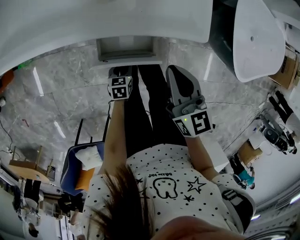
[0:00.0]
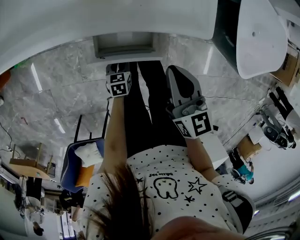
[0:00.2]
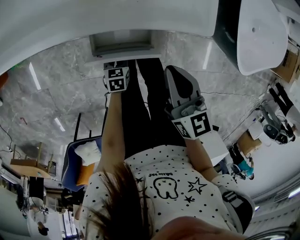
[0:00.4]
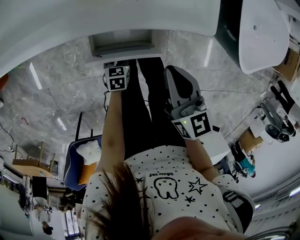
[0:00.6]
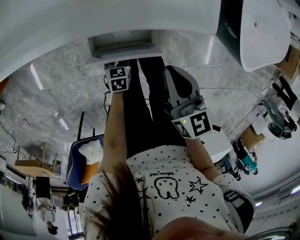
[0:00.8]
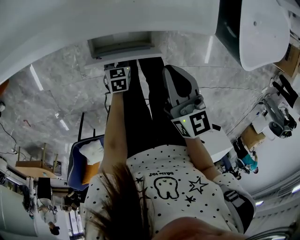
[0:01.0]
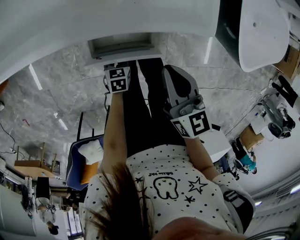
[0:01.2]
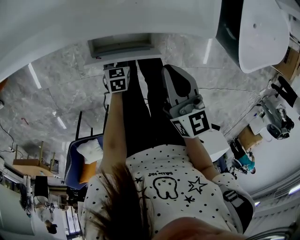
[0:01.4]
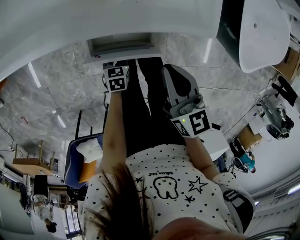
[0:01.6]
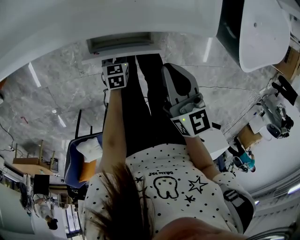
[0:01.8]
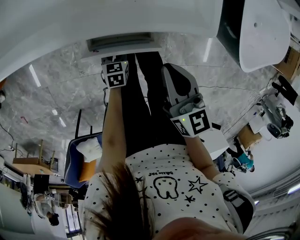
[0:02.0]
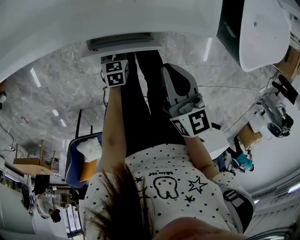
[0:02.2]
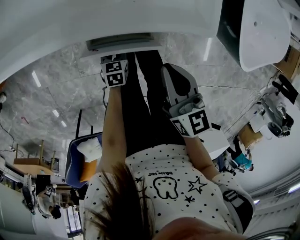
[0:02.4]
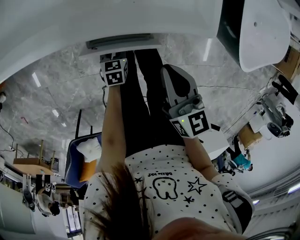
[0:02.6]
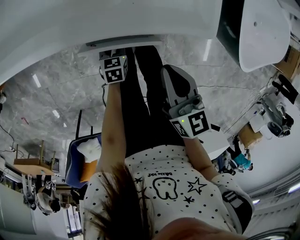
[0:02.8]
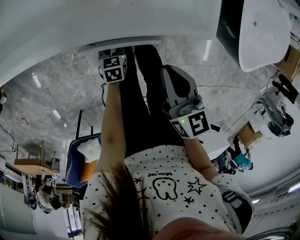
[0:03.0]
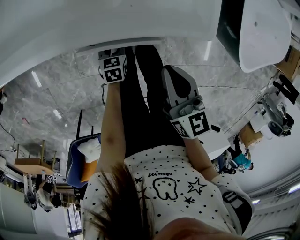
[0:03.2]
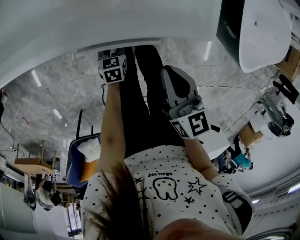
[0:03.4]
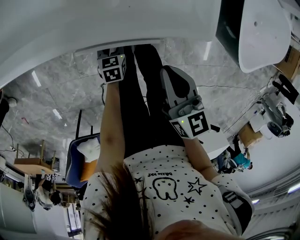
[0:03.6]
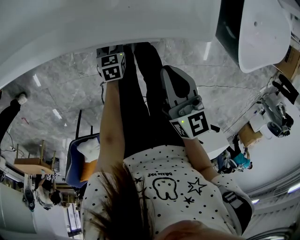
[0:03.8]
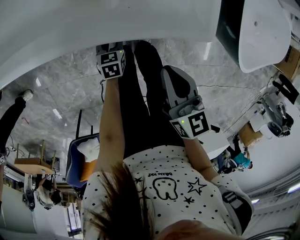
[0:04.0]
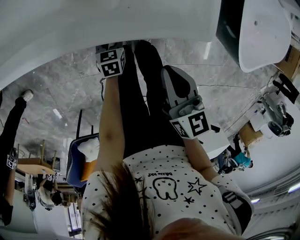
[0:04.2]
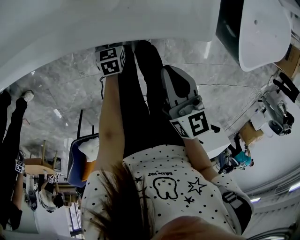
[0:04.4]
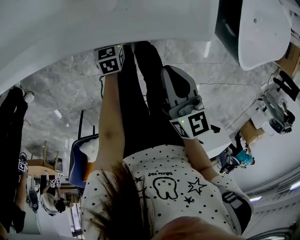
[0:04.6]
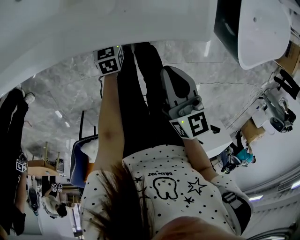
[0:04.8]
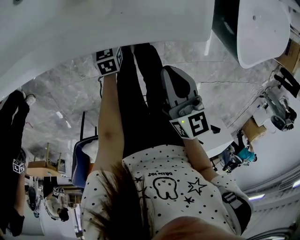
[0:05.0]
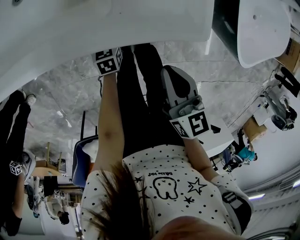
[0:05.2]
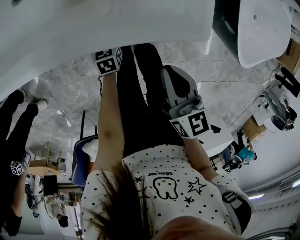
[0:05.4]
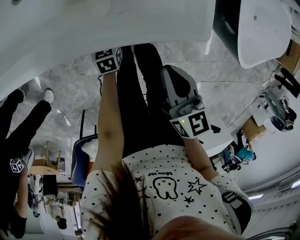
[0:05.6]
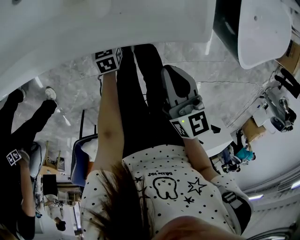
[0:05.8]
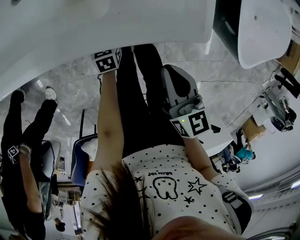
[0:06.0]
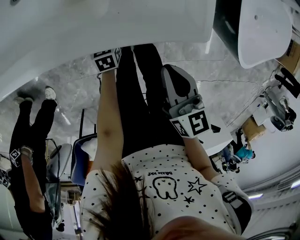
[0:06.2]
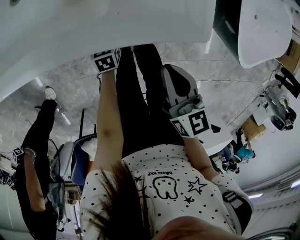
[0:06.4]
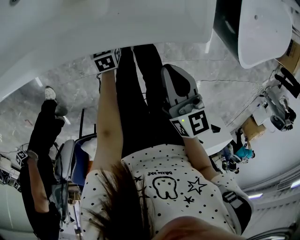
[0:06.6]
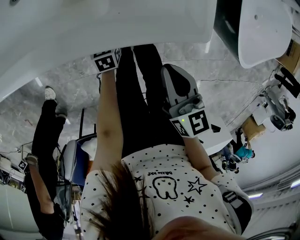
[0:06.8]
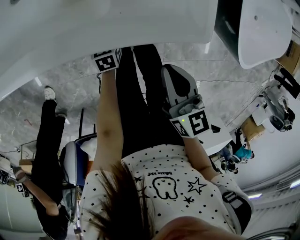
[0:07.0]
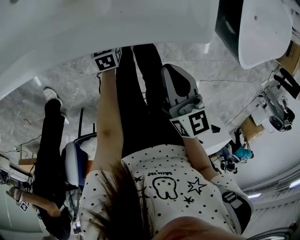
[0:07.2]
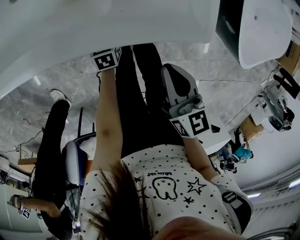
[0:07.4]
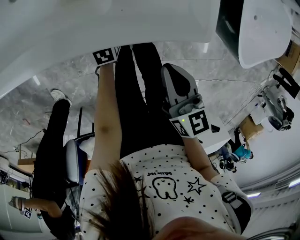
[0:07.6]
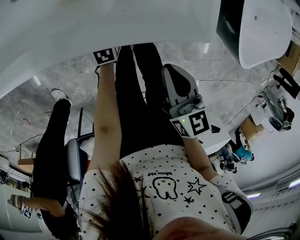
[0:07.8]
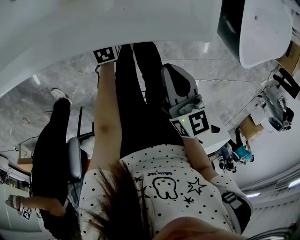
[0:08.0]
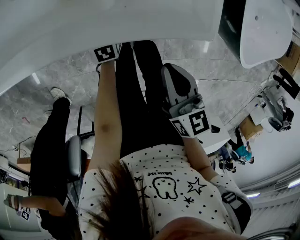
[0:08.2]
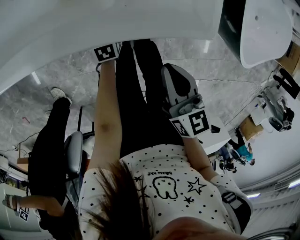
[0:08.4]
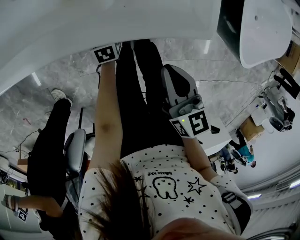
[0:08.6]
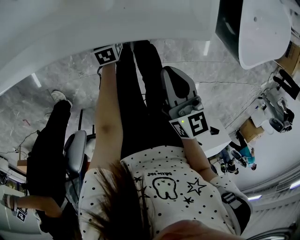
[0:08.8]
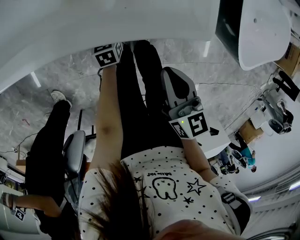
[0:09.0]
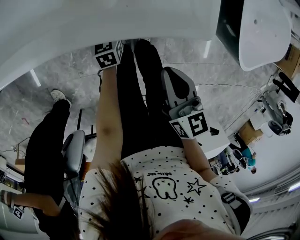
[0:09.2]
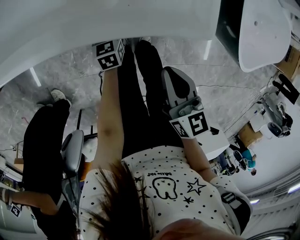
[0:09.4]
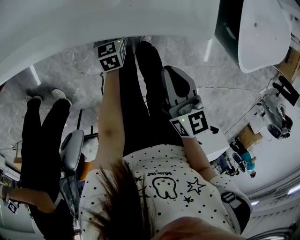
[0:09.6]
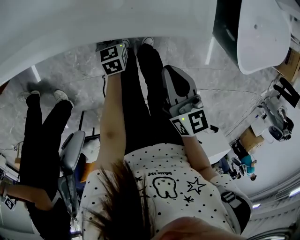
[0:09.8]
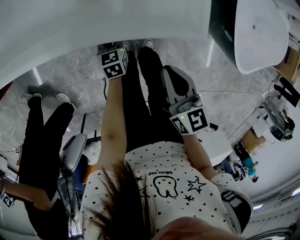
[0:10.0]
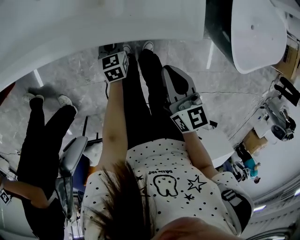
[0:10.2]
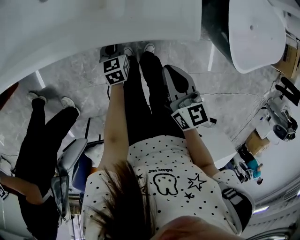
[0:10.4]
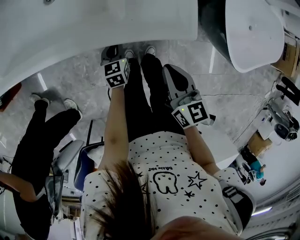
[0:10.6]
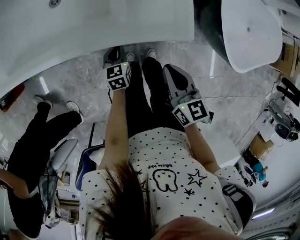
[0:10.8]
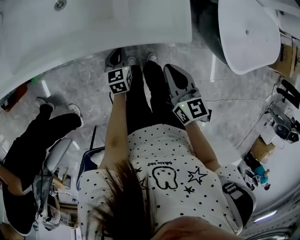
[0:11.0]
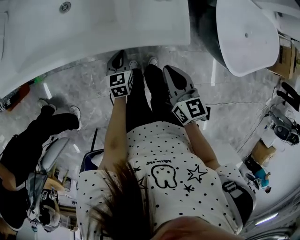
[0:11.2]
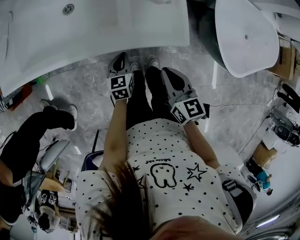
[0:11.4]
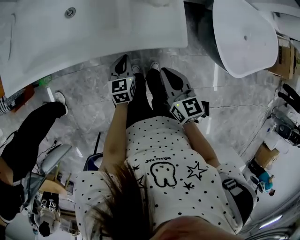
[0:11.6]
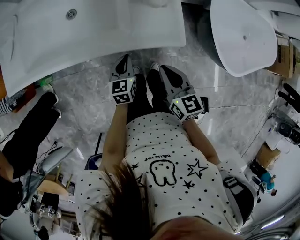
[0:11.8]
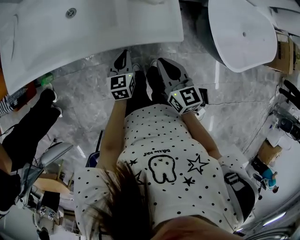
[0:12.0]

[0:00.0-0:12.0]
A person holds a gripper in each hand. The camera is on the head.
0.0 to 1.6 s: The grippers stay close to where they were, moving slightly.
1.6 to 3.0 s: The left gripper goes approximately 5 cm forward.
3.0 to 4.4 s: There are only small adjustments of the grippers.
4.4 to 7.6 s: There are only small adjustments of the grippers.
7.6 to 9.0 s: The grippers move only a little.
9.0 to 10.4 s: The left gripper moves upward, roughly 10 cm, and closes.
10.4 to 12.0 s: The left gripper travels upward by approximately 20 cm. Meanwhile the right gripper goes some 10 cm upward.

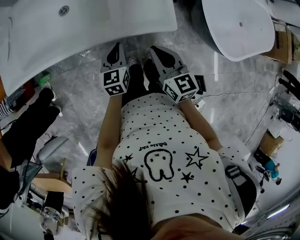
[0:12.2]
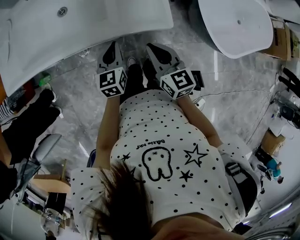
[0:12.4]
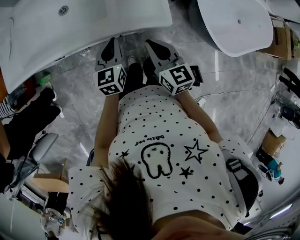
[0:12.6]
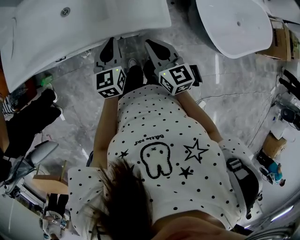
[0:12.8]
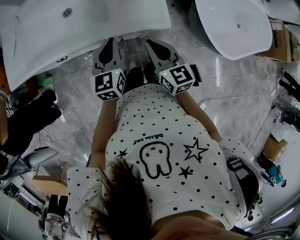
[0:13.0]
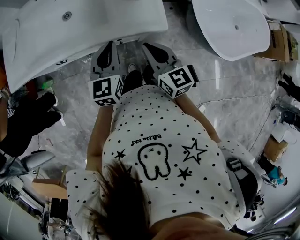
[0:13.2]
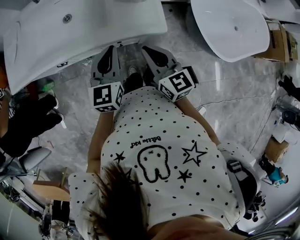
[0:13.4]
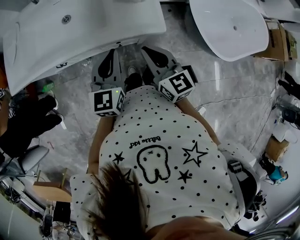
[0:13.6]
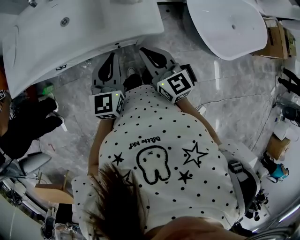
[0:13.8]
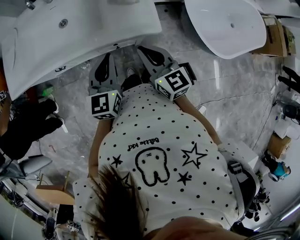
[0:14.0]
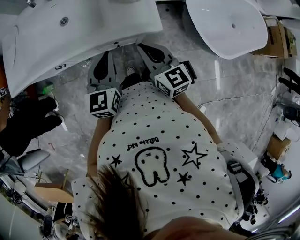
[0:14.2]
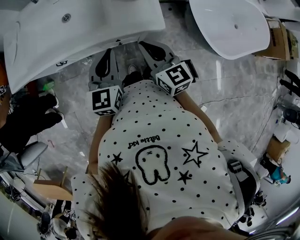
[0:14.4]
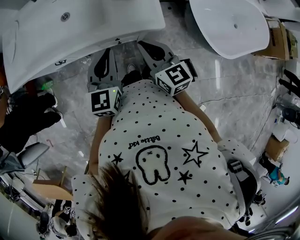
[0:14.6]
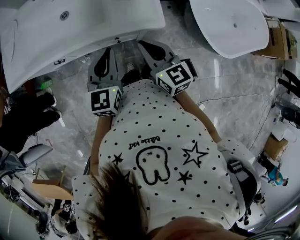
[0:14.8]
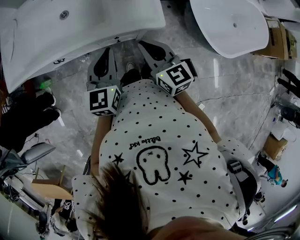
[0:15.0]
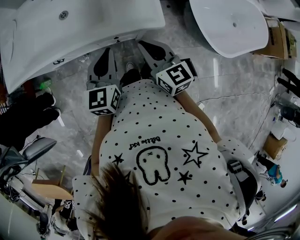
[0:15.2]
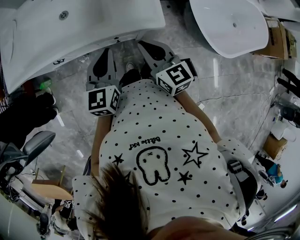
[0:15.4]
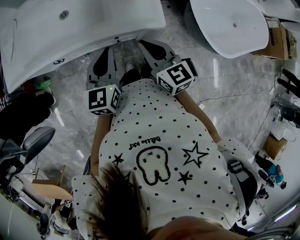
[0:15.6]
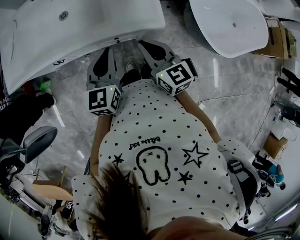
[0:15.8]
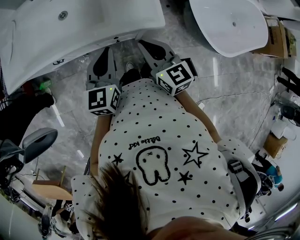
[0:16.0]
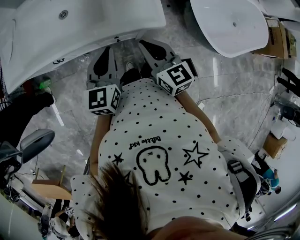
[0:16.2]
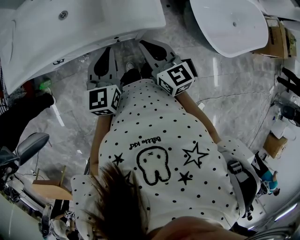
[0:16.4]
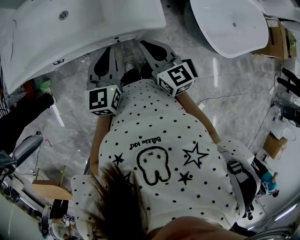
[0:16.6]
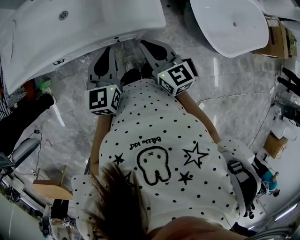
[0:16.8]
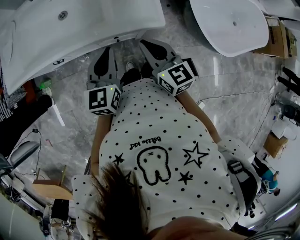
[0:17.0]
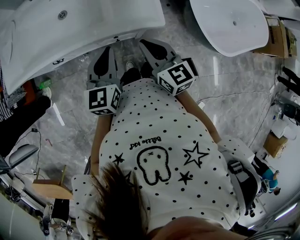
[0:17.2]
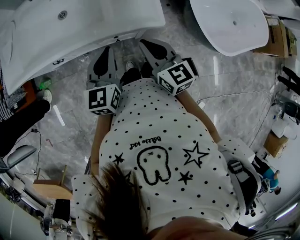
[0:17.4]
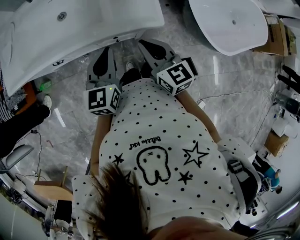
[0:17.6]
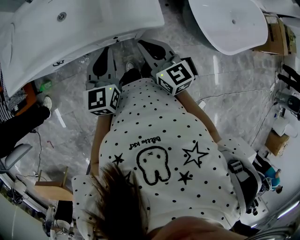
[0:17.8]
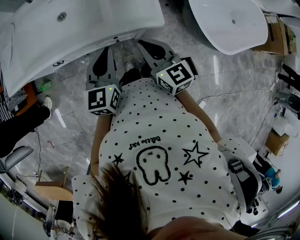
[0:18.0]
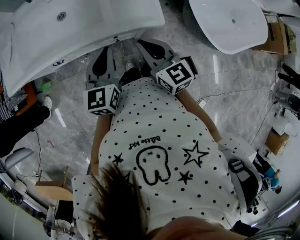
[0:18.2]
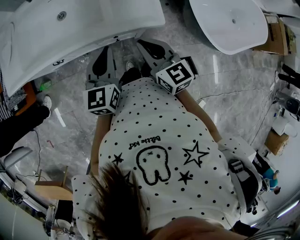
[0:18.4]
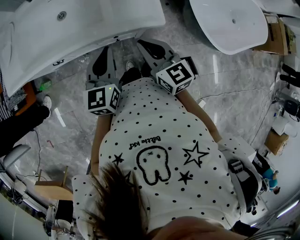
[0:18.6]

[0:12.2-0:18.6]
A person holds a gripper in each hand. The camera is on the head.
12.2 to 13.8 s: The right gripper heads upward, covering roughly 5 cm; the left gripper is displaced upward by roughly 15 cm.
13.8 to 15.4 s: The grippers make only small movements.
15.4 to 18.6 s: The two grippers keep their place.

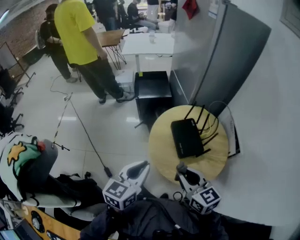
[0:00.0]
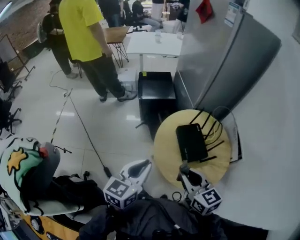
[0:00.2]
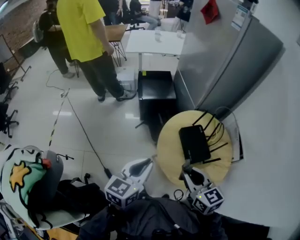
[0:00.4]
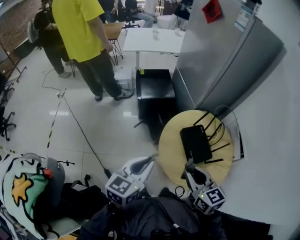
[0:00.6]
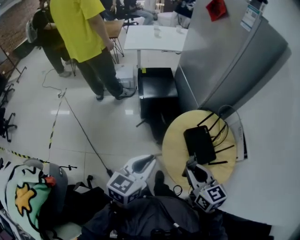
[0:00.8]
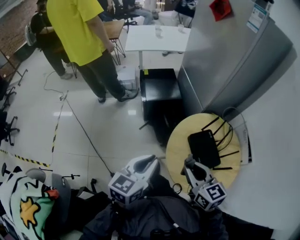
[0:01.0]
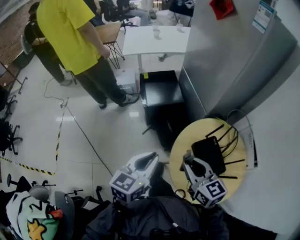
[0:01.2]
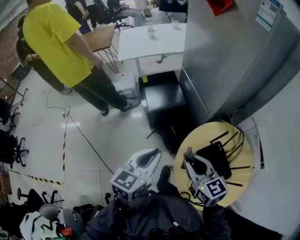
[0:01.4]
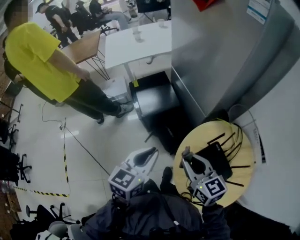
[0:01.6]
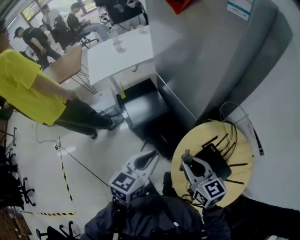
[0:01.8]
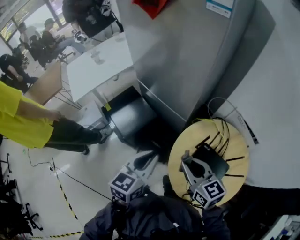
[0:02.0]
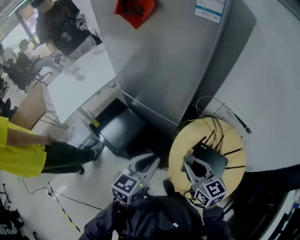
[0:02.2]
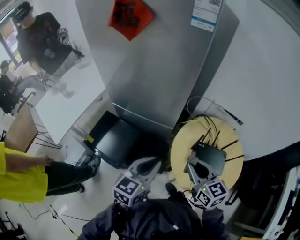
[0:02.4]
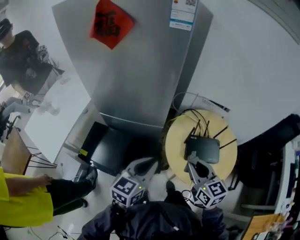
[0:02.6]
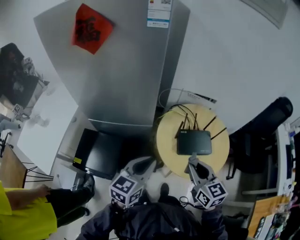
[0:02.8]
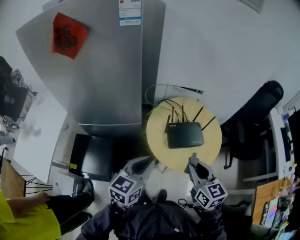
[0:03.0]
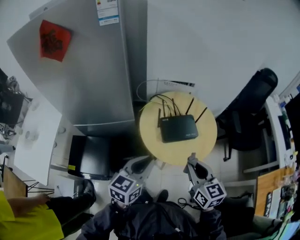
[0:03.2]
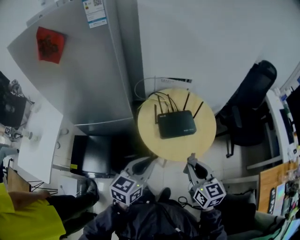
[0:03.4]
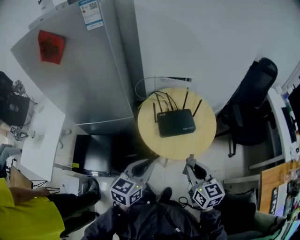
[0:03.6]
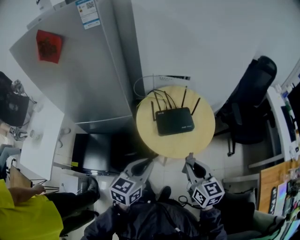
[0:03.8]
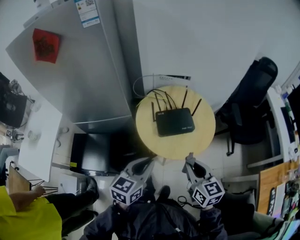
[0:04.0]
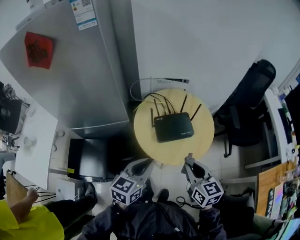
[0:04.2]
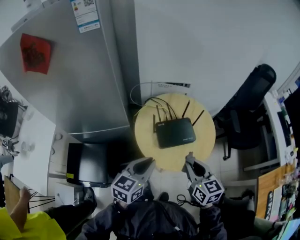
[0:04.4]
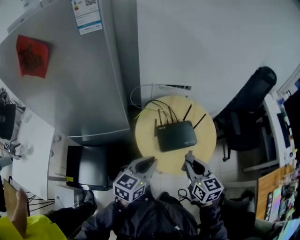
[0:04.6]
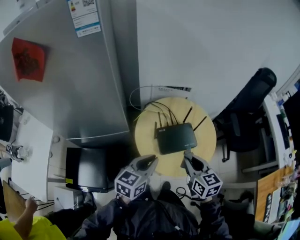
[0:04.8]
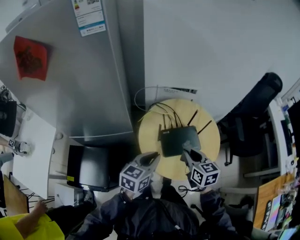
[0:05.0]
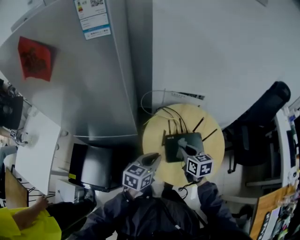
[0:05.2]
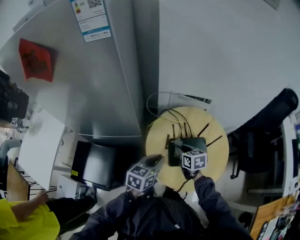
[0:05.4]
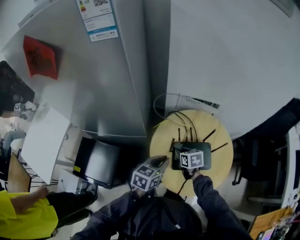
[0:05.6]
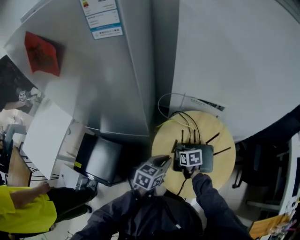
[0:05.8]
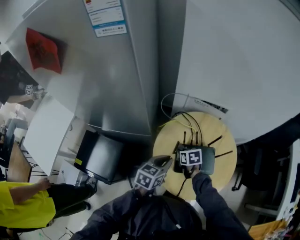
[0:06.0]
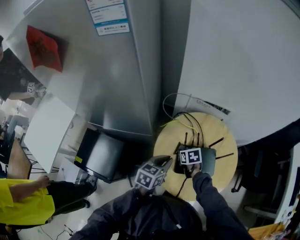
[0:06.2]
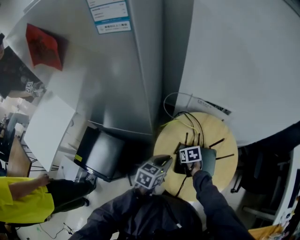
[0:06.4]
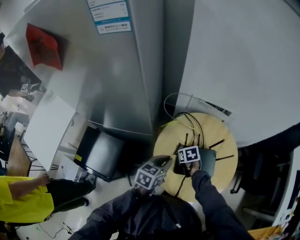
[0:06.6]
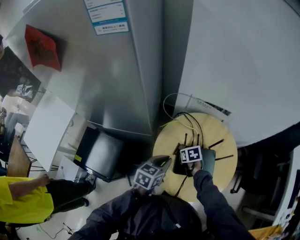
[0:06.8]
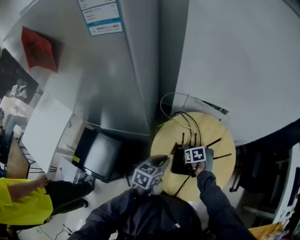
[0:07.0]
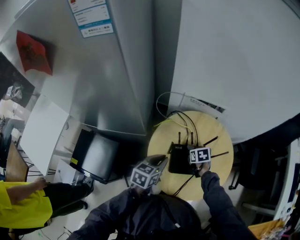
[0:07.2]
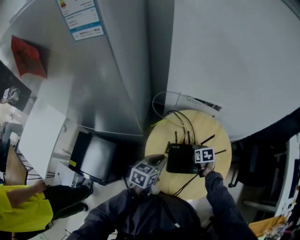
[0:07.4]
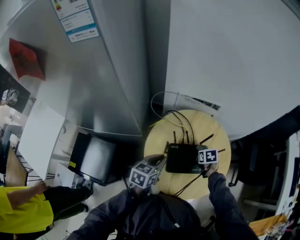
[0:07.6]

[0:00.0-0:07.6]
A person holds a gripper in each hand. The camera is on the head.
0.0 to 1.6 s: The grippers both shift forward by approximately 35 cm.
1.6 to 3.0 s: The left gripper swivels some 70 degrees; the right gripper ends up approximately 5 cm from where it was, and swivels roughly 80 degrees.
3.0 to 4.6 s: The right gripper moves forward, some 5 cm. Meanwhile the left gripper moves forward and to the right, approximately 10 cm.
4.6 to 6.0 s: The left gripper travels forward and downward by about 15 cm, and rotates roughly 20 degrees; the right gripper heads downward and forward, covering about 30 cm, and points its fingers some 30 degrees further downward.
6.0 to 7.6 s: The right gripper heads to the right, covering some 20 cm.
